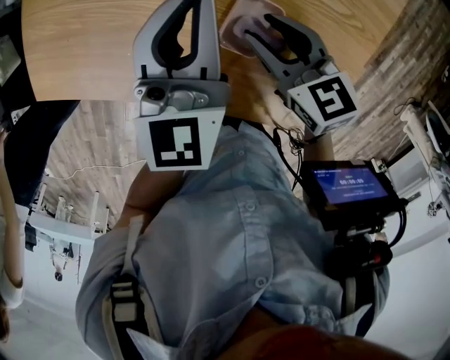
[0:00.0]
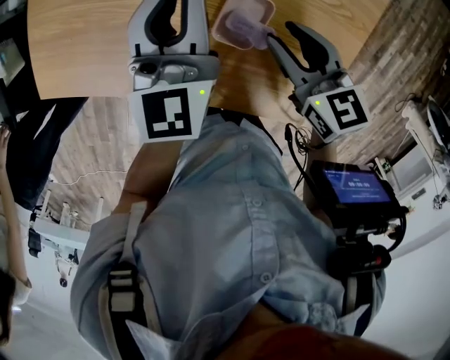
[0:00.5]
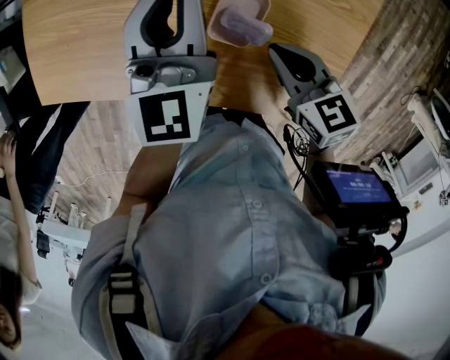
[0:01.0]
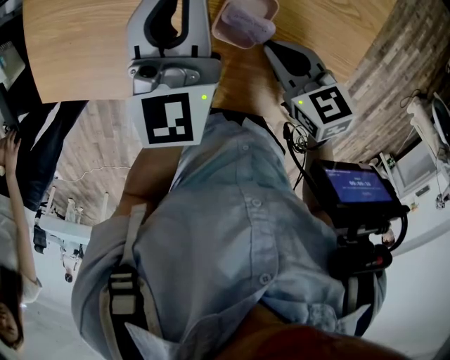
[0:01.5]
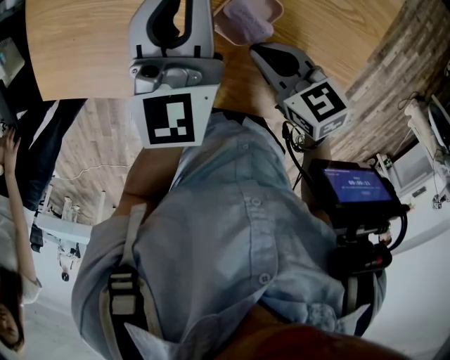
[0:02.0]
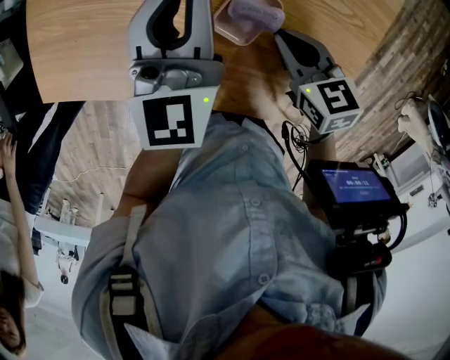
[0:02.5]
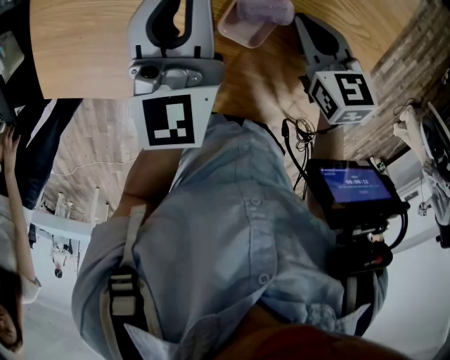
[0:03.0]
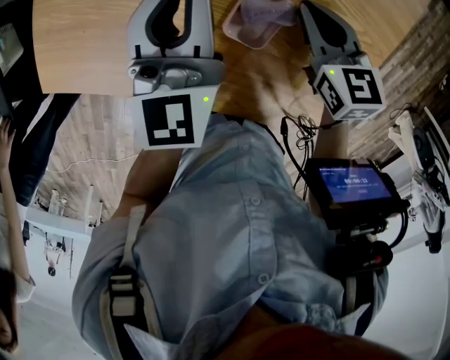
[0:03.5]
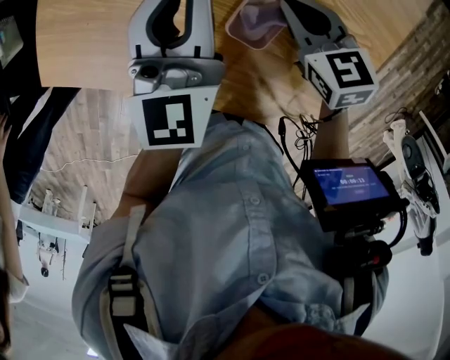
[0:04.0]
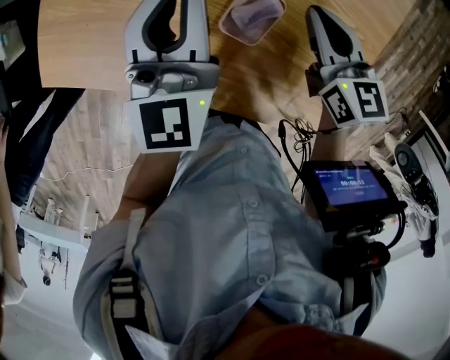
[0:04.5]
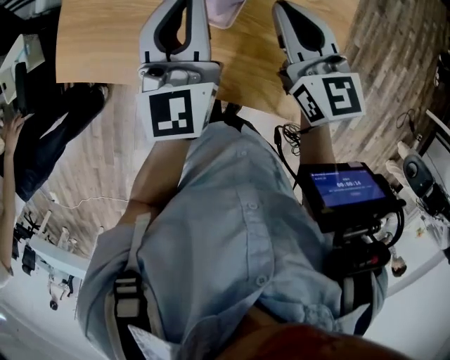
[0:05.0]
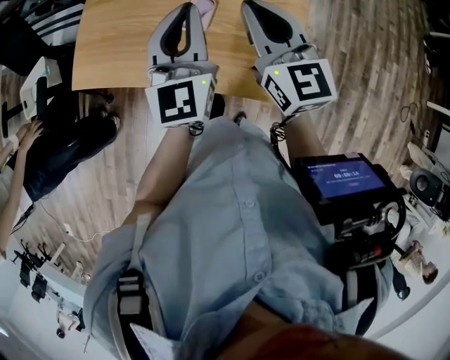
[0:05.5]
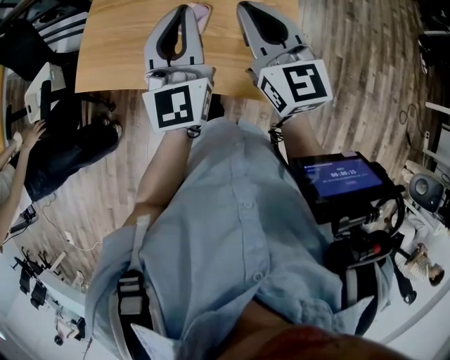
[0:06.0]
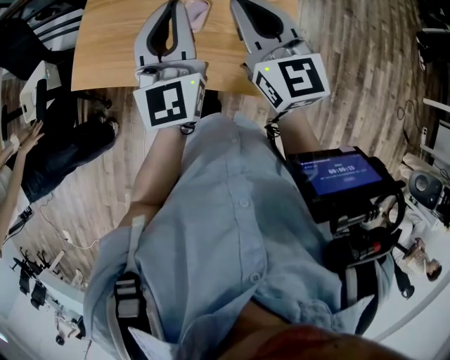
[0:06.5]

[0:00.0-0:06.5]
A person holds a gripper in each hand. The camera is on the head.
0:00.0 to 0:02.0: The right gripper closes up.
0:02.0 to 0:04.5: The right gripper heads to the right, forward and upward, covering approximately 15 cm, and changes its angle by about 30 degrees.
0:04.5 to 0:06.5: The right gripper heads upward and backward, covering some 30 cm, and rotates about 30 degrees; the left gripper heads backward, upward and to the right, covering roughly 30 cm.

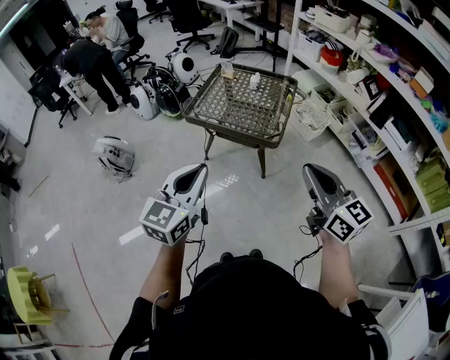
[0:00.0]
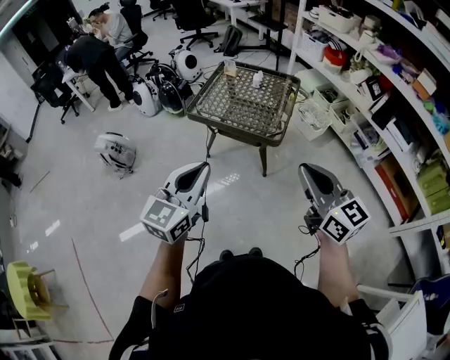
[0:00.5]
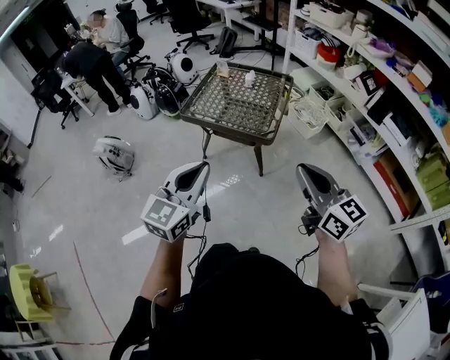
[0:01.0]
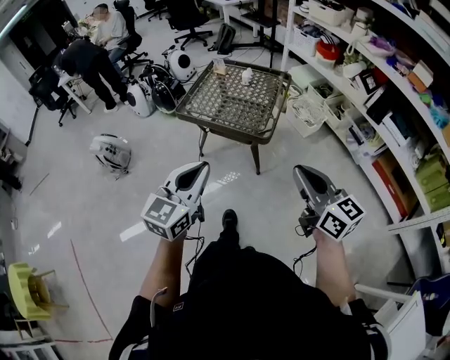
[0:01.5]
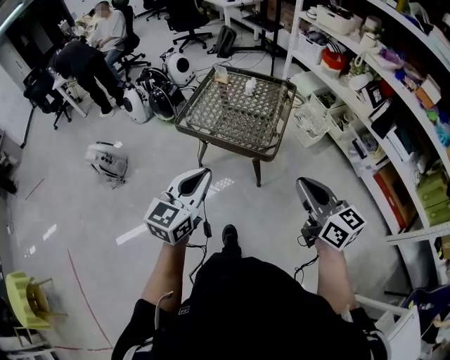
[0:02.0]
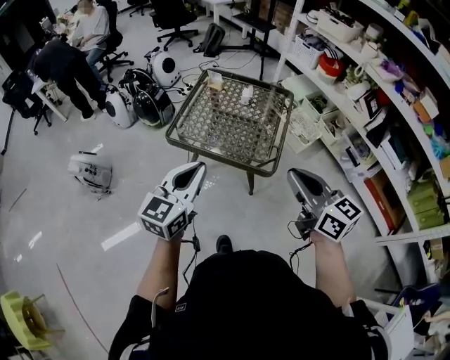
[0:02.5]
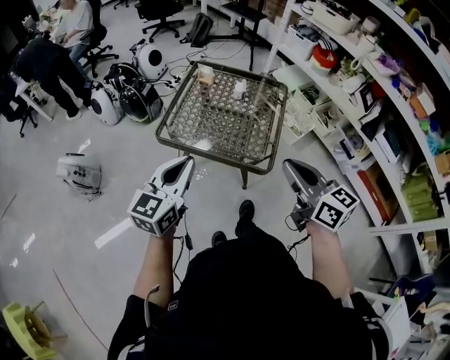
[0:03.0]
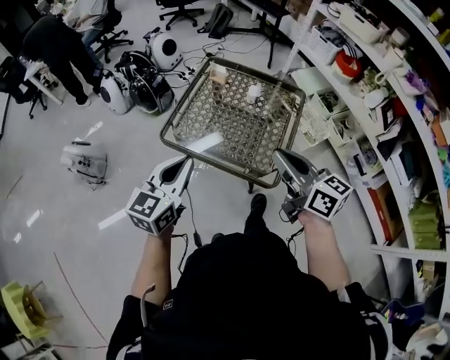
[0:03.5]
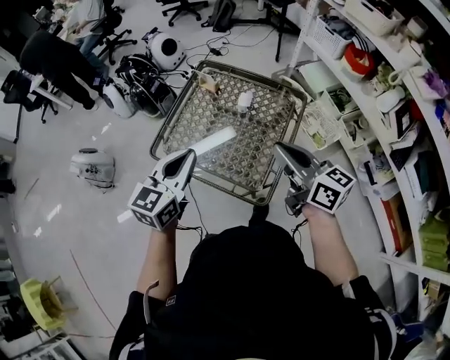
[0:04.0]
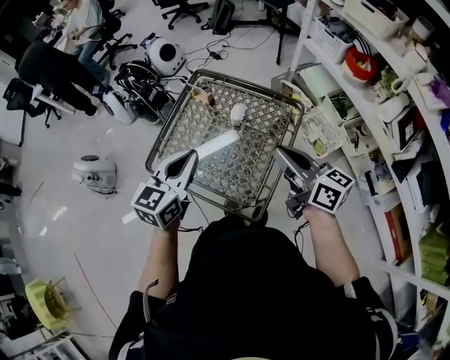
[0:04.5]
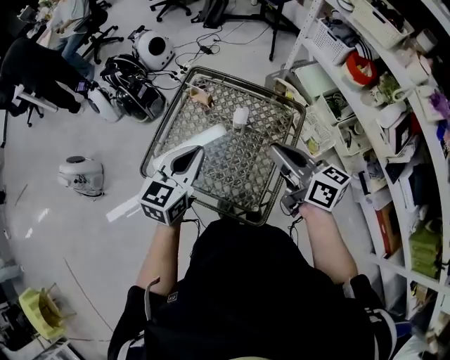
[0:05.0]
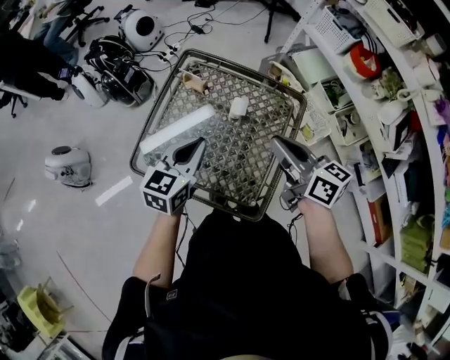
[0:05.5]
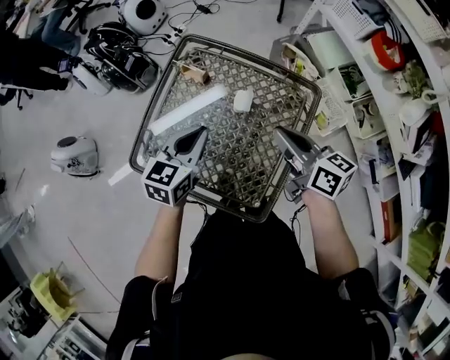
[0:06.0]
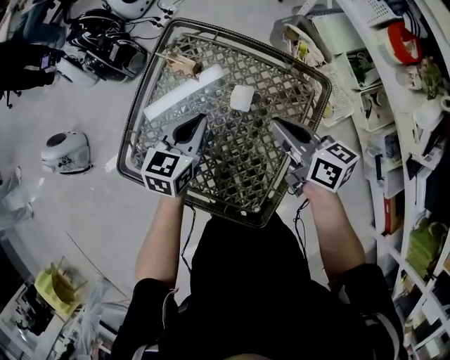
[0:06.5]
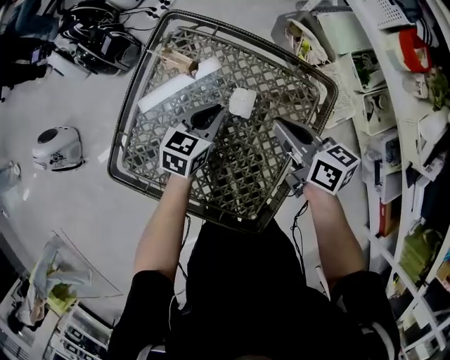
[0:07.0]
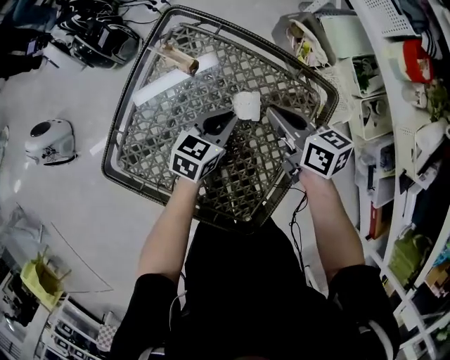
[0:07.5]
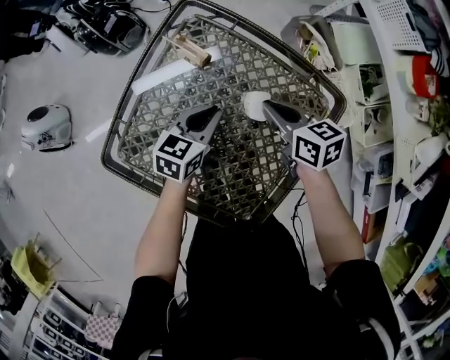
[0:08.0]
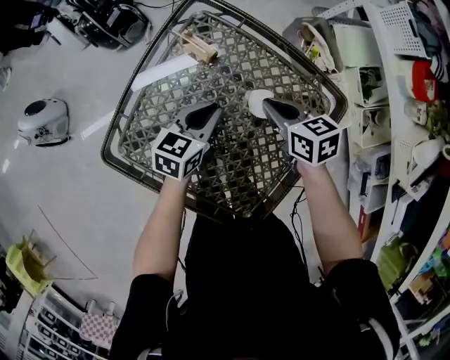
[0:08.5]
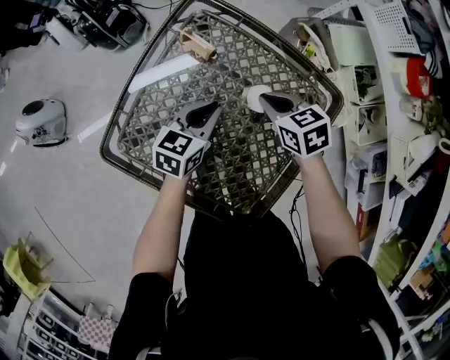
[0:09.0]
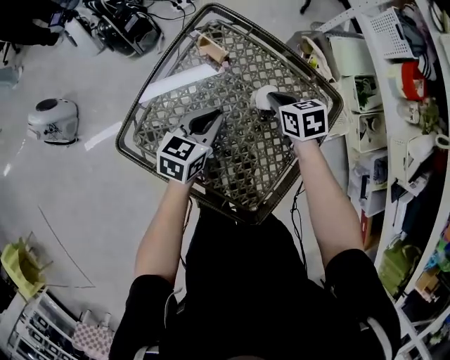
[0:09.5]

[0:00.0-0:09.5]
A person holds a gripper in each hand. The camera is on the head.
0:00.0 to 0:02.0: The left gripper shifts about 10 cm forward; the right gripper is displaced forward and downward by approximately 10 cm.
0:02.0 to 0:04.0: Both grippers move forward, roughly 40 cm.
0:04.0 to 0:05.5: Both grippers move forward and downward, about 15 cm.
0:05.5 to 0:07.5: The right gripper heads downward and forward, covering about 25 cm; the left gripper travels downward, forward and to the right by some 25 cm.
0:07.5 to 0:09.5: The left gripper travels to the left and upward by approximately 10 cm; the right gripper moves downward, about 5 cm, and changes its angle by approximately 30 degrees.

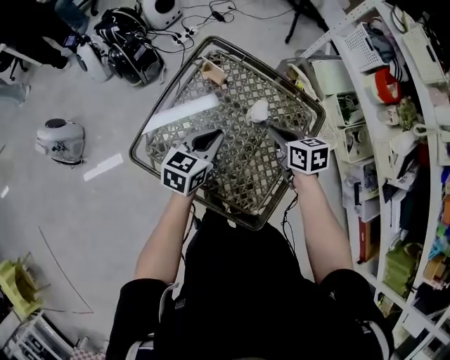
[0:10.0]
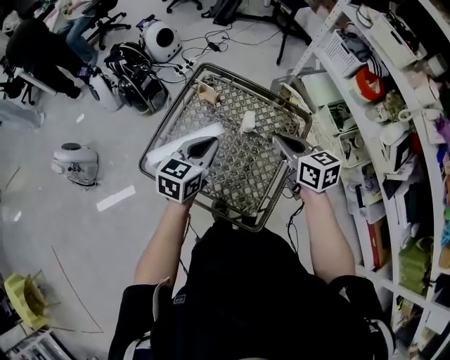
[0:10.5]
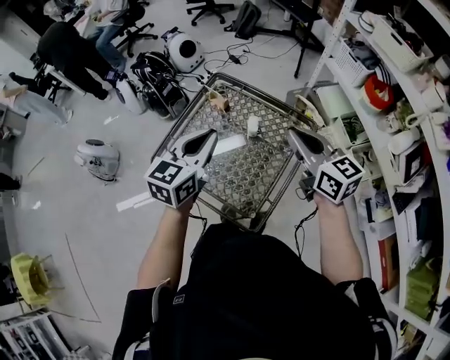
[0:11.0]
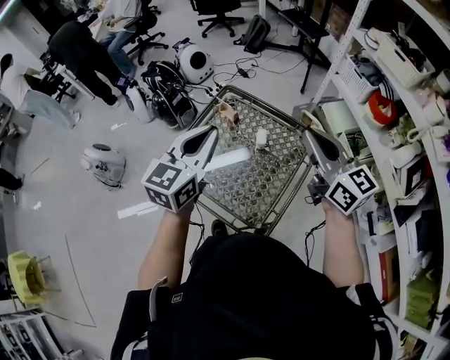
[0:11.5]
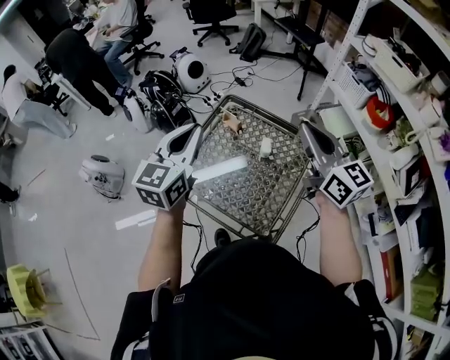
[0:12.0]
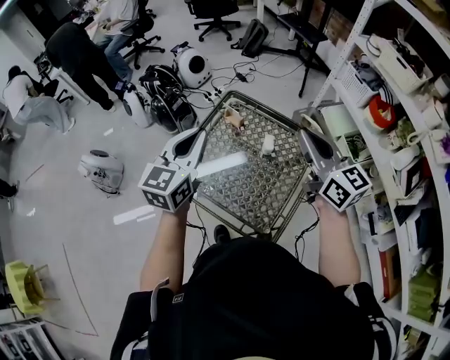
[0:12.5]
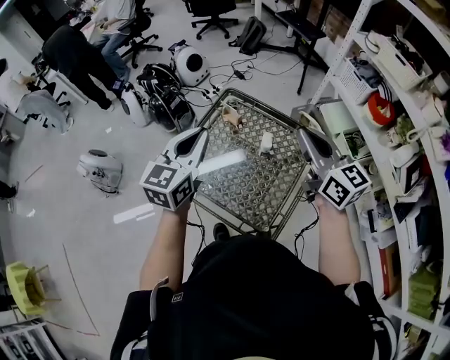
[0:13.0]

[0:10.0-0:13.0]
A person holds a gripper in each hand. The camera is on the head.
0:10.0 to 0:11.5: Both grippers travel together upward, approximately 30 cm. The left gripper turns by approximately 30 degrees. Meanwhile the right gripper tips its fingers upward by some 50 degrees.
0:11.5 to 0:13.0: The right gripper shifts by some 5 cm. The left gripper shifts some 5 cm to the left.

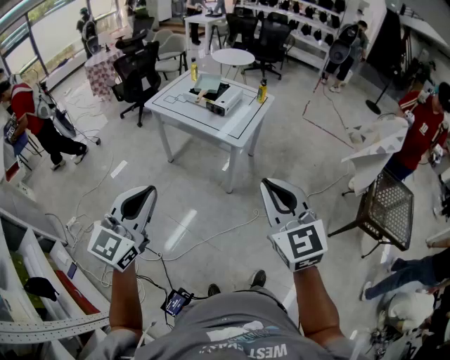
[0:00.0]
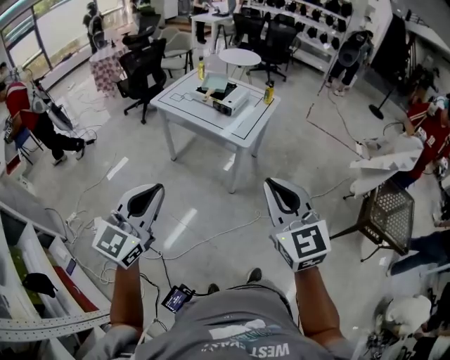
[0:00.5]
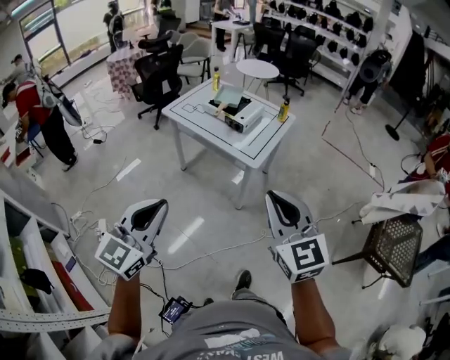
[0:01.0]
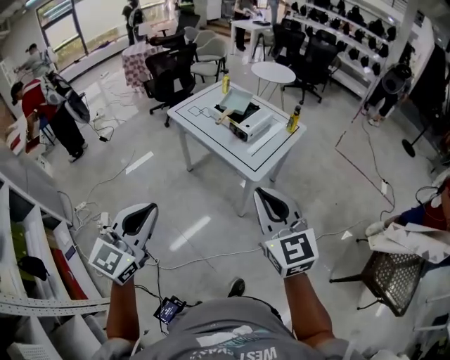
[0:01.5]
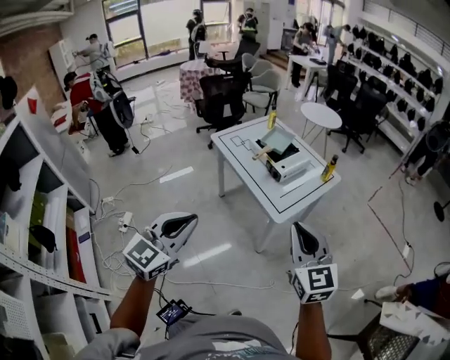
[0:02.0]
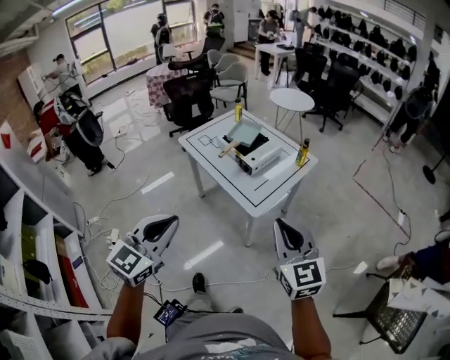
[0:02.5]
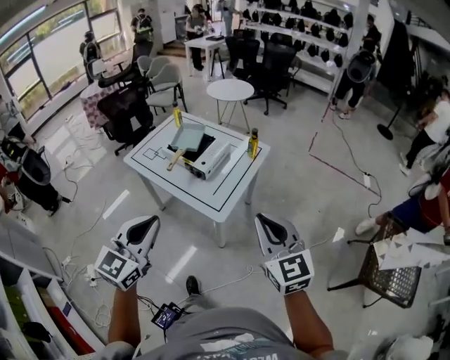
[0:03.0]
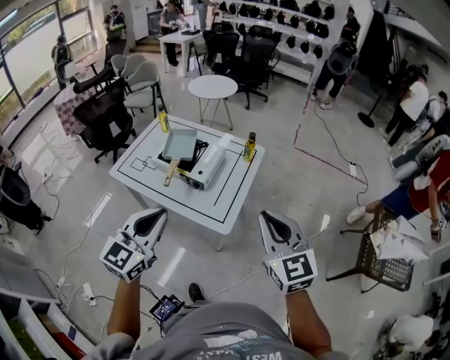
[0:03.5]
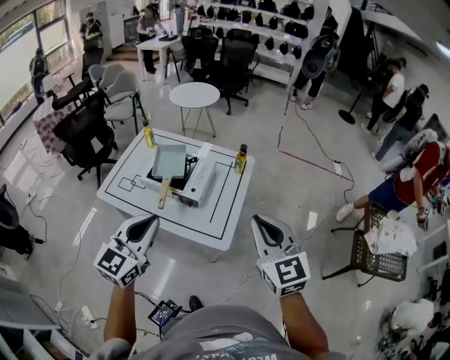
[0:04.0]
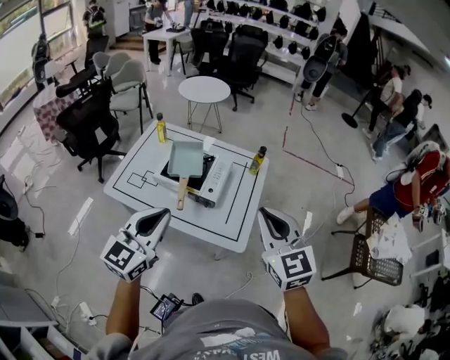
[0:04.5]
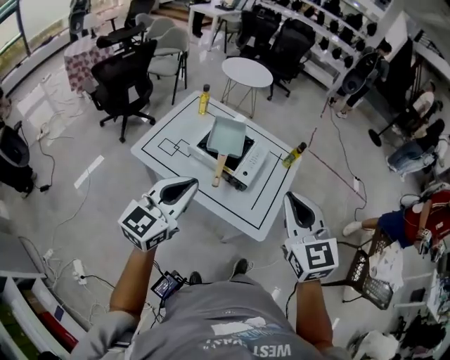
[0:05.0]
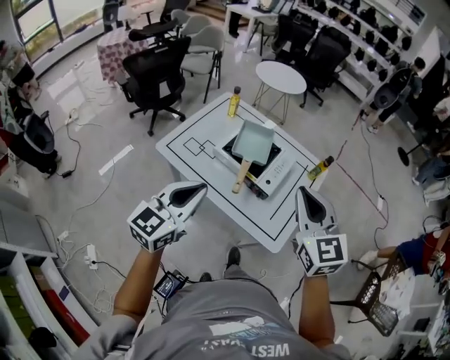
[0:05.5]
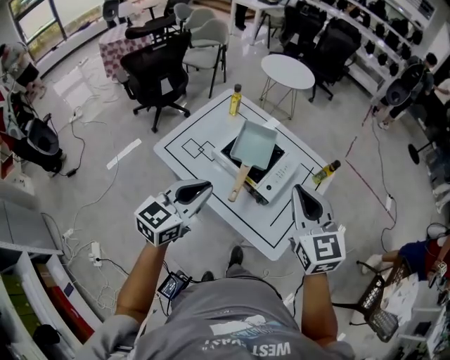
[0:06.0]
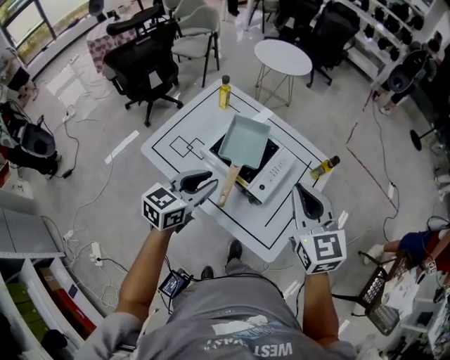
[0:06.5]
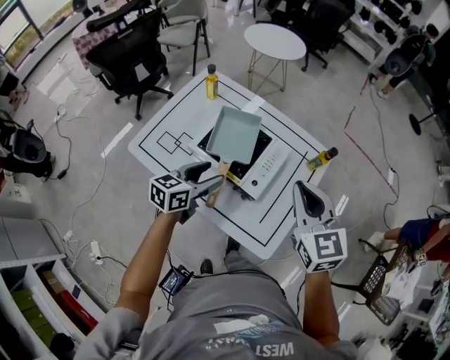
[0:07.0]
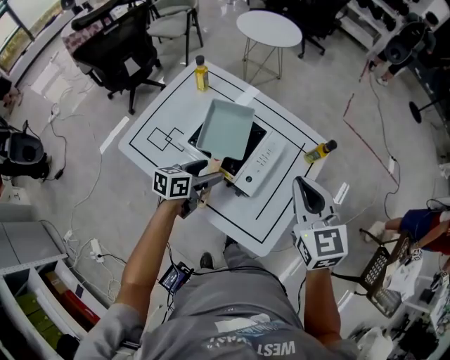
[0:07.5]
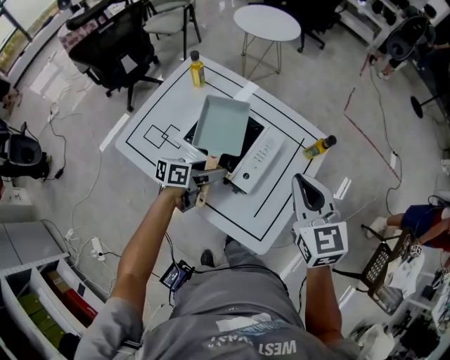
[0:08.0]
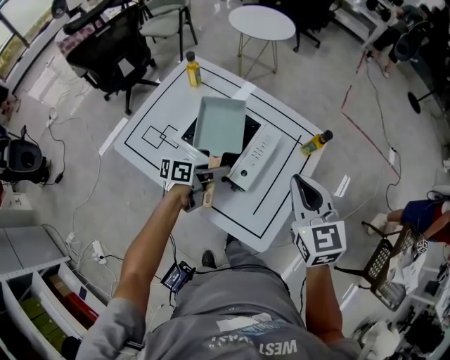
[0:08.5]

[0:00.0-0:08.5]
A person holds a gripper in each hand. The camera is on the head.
0:00.0 to 0:02.0: The left gripper is displaced forward and to the right by some 20 cm; the right gripper goes about 25 cm forward.
0:02.0 to 0:04.0: The right gripper changes place by about 25 cm, and turns by some 30 degrees. Meanwhile the left gripper ends up approximately 40 cm from where it was, and swivels some 30 degrees.
0:04.0 to 0:06.5: The right gripper is displaced forward and to the left by roughly 30 cm, while the left gripper heads forward, downward and to the left, covering roughly 25 cm, and changes its angle by approximately 20 degrees.
0:06.5 to 0:08.5: The right gripper travels downward and to the right by about 10 cm. The left gripper shifts about 20 cm downward, forward and to the right, rolls counterclockwise, seen from behind, by about 40 degrees, and opens up.
